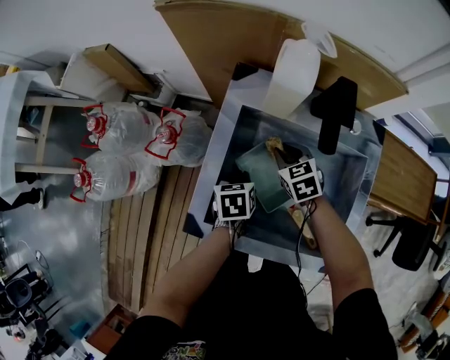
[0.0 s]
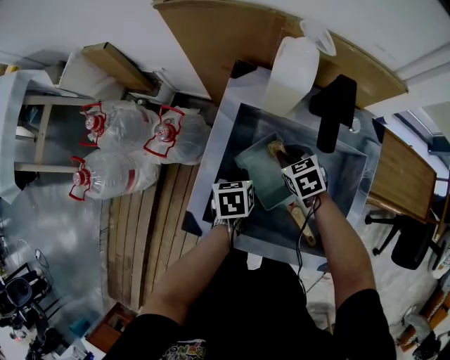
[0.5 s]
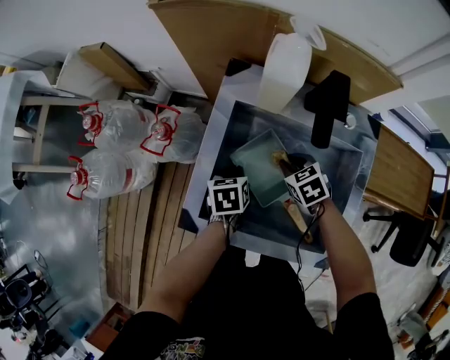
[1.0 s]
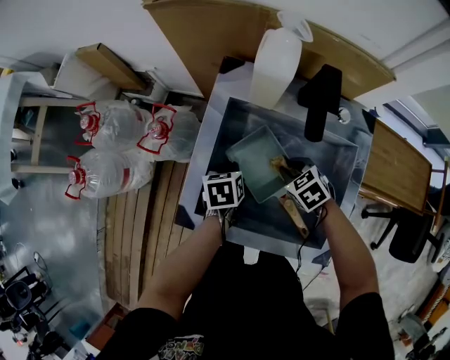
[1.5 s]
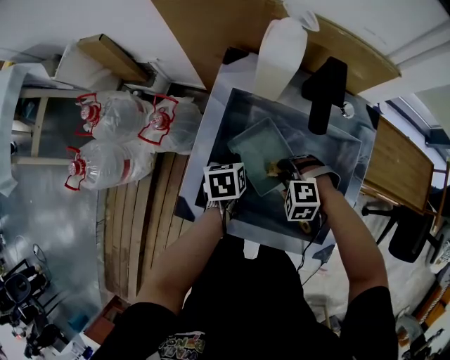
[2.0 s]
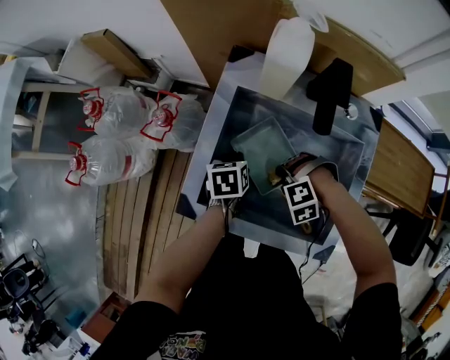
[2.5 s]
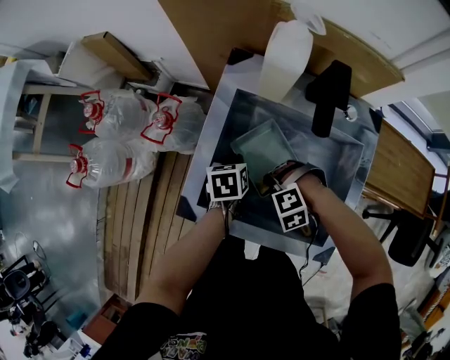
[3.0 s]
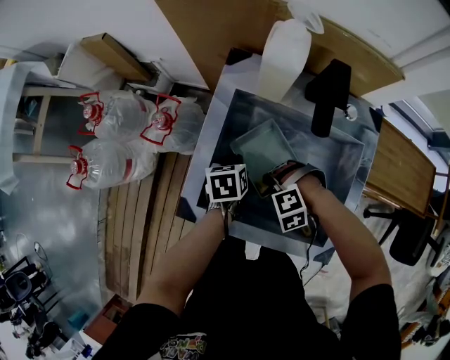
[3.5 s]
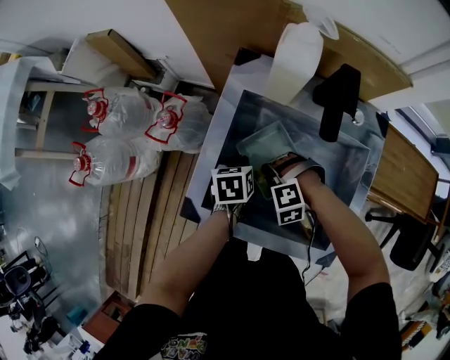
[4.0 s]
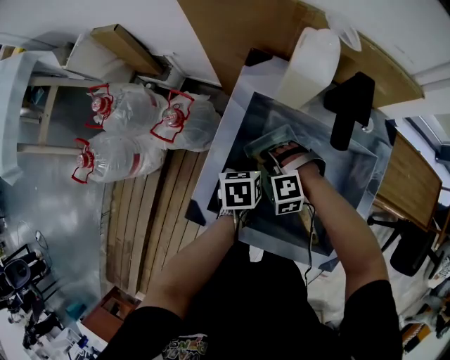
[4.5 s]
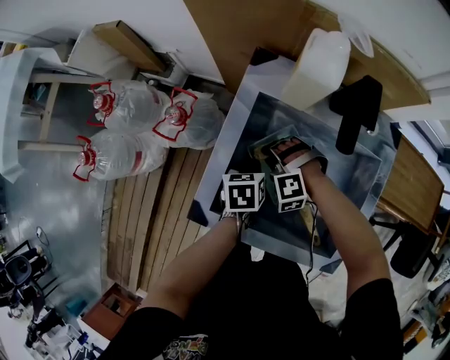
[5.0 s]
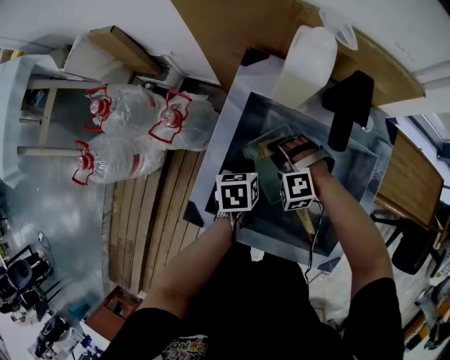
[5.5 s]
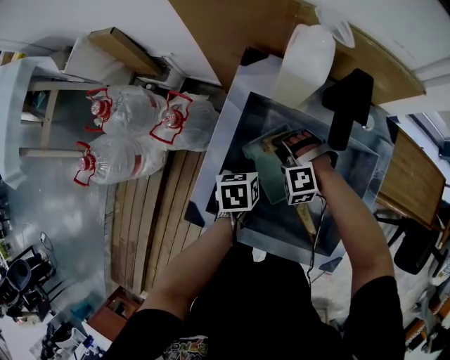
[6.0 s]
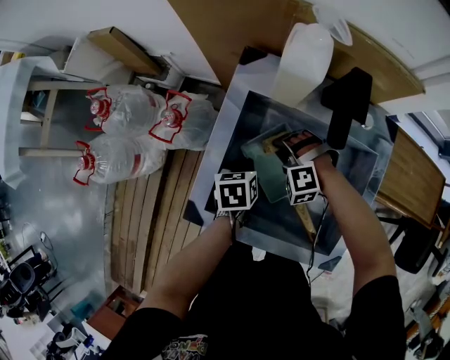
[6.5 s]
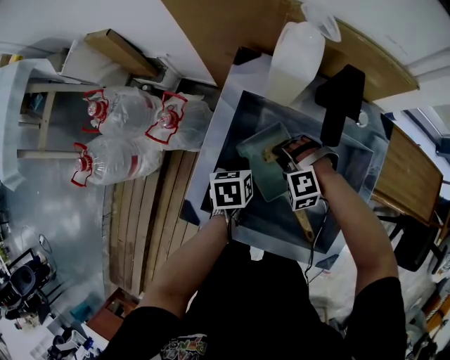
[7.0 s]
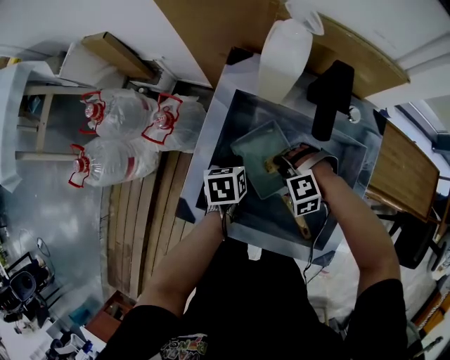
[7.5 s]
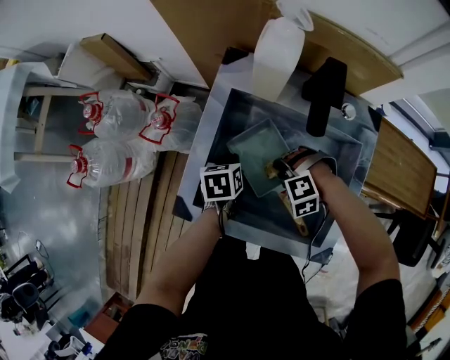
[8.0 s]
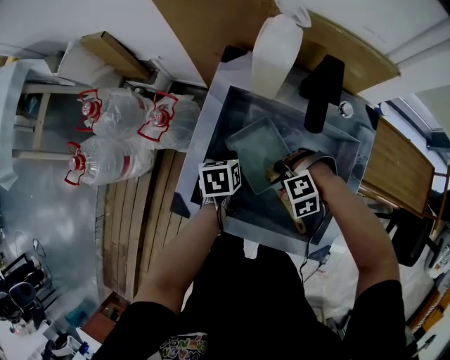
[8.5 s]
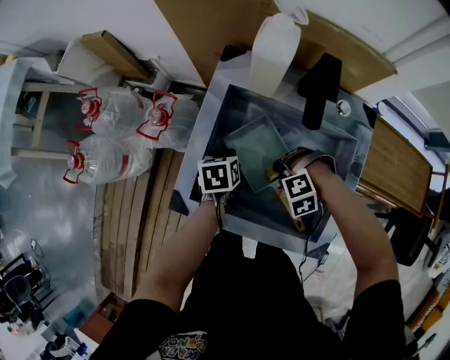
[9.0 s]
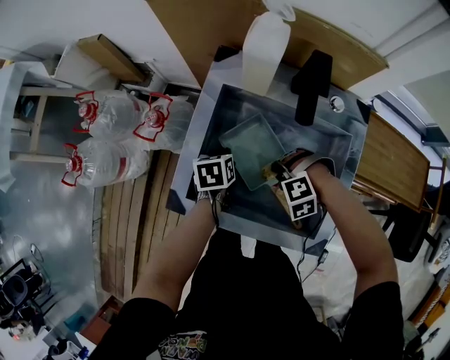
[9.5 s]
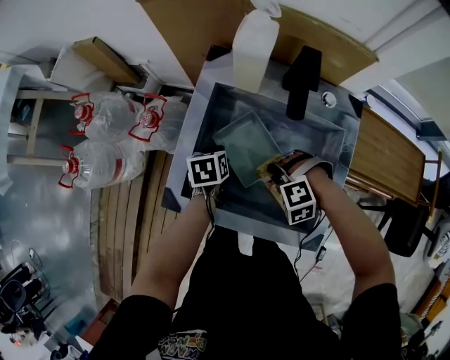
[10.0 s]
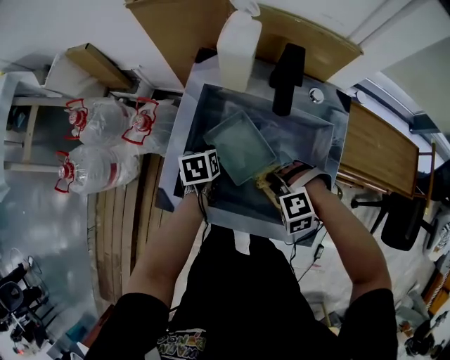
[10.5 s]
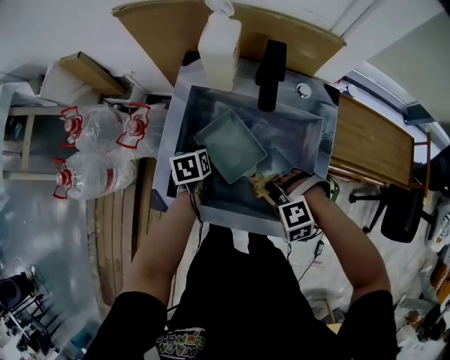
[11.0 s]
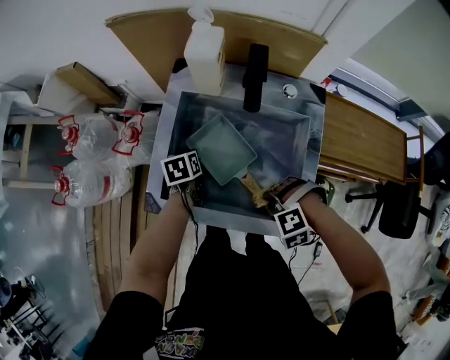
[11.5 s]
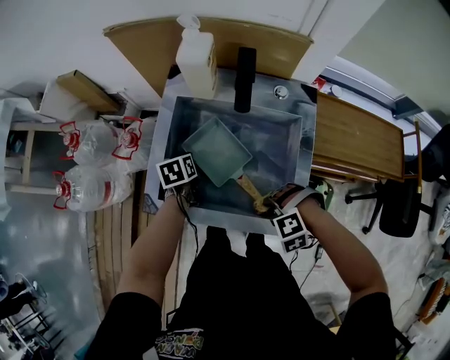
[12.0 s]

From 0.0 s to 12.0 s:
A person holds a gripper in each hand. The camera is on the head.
From 0.0 s to 2.0 s: The right gripper travels backward by approximately 15 cm, and twists some 60 degrees counterclockwise, seen from behind.
From 2.0 s to 4.0 s: The right gripper ends up roughly 5 cm from where it was.
From 4.0 s to 6.0 s: The right gripper heads forward, covering some 10 cm.
From 6.0 s to 8.0 s: The right gripper goes approximately 10 cm backward.
From 8.0 s to 10.0 s: The right gripper changes place by about 5 cm.
From 10.0 s to 12.0 s: The right gripper shifts by about 15 cm.

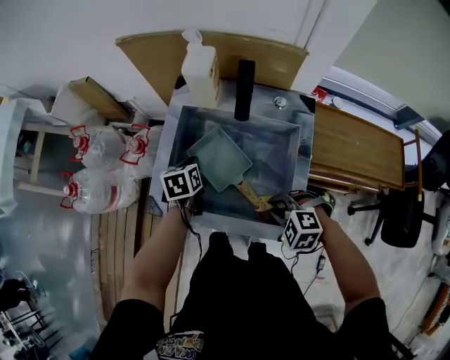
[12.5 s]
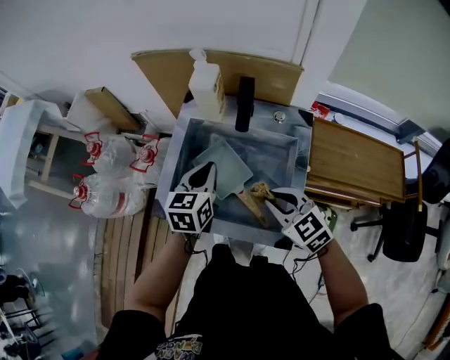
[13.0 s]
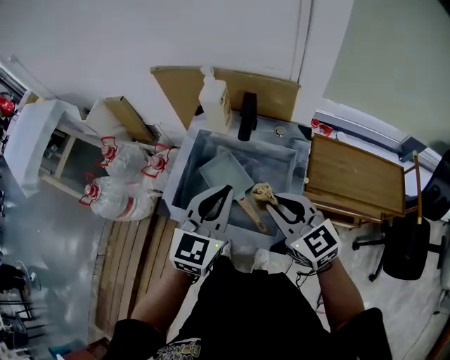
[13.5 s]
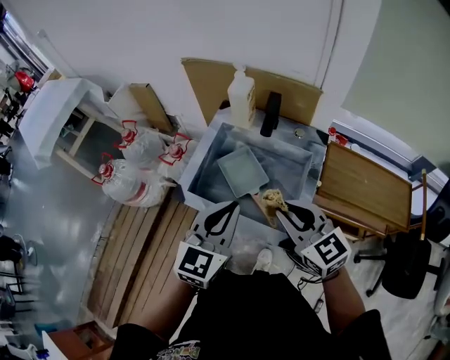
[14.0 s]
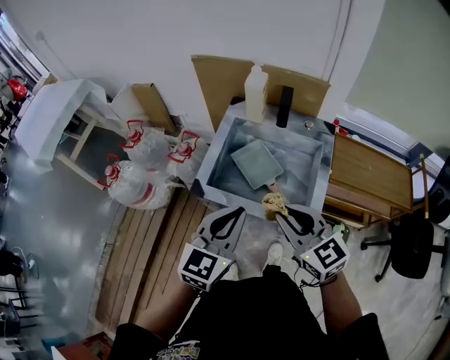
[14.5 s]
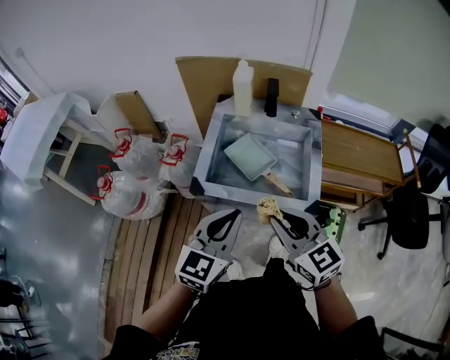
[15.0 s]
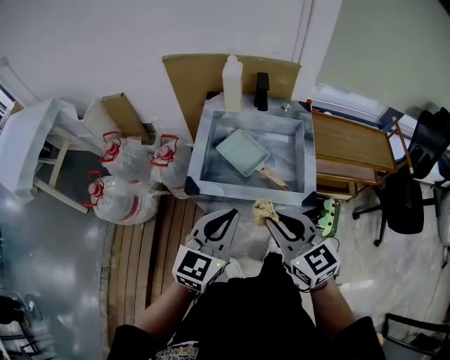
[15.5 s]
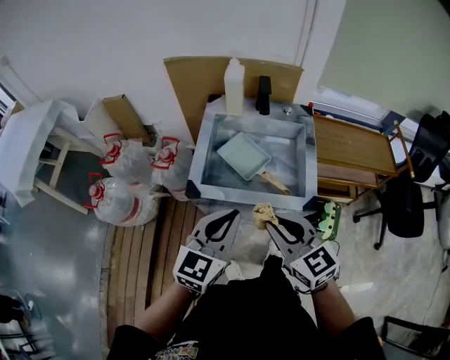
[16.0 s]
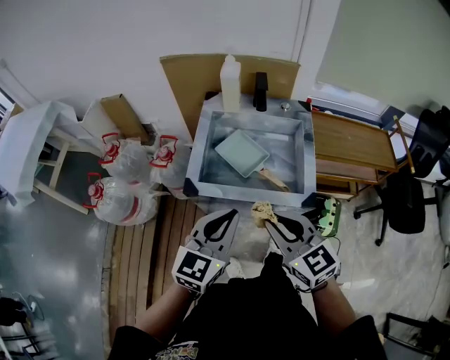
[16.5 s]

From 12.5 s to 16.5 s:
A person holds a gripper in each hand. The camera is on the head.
From 12.5 s to 14.5 s: The right gripper is displaced upward and to the left by some 25 cm, and tilts its fingers some 50 degrees upward, while the left gripper heads backward and upward, covering about 40 cm, and tips its fingers upward by roughly 40 degrees.
From 14.5 s to 16.5 s: The right gripper moves backward, some 5 cm. Meanwhile the left gripper shifts by about 5 cm.

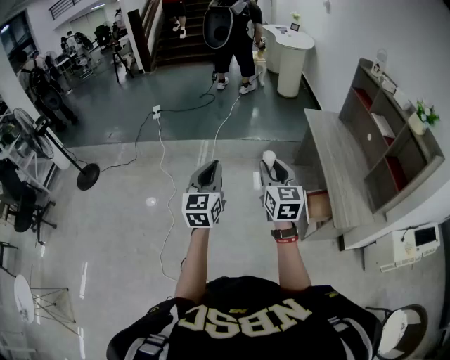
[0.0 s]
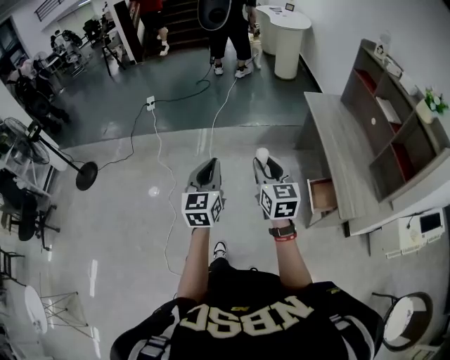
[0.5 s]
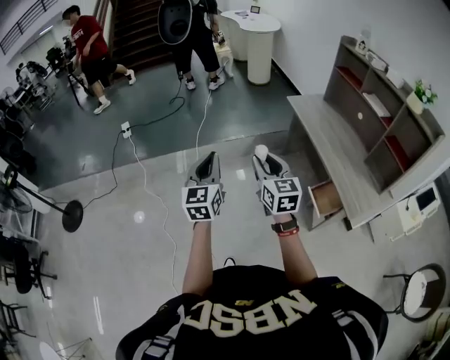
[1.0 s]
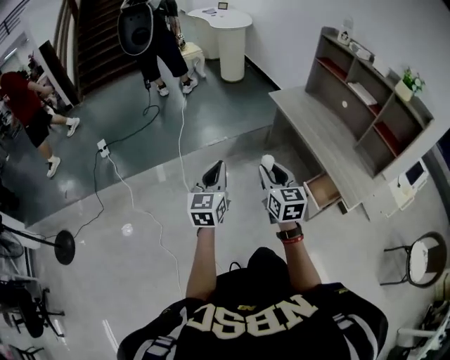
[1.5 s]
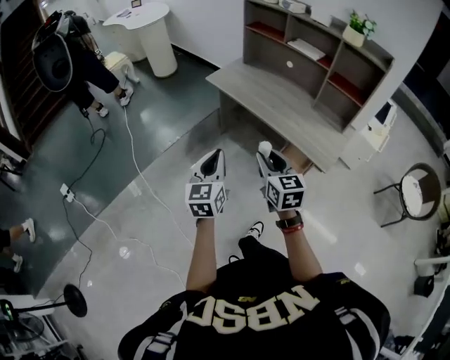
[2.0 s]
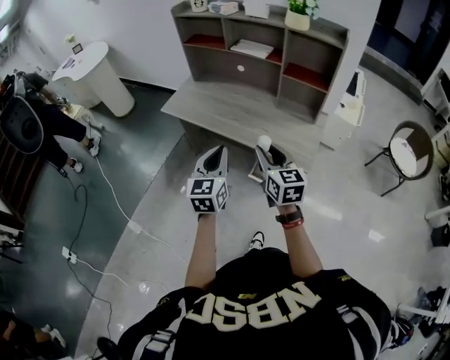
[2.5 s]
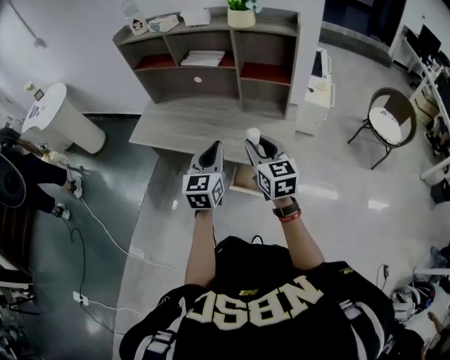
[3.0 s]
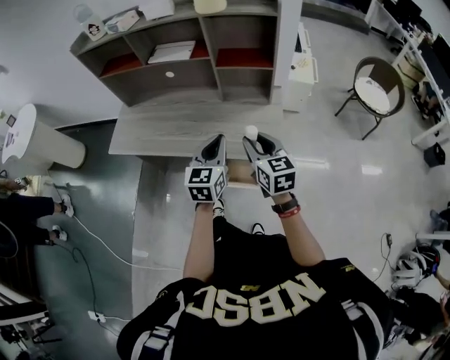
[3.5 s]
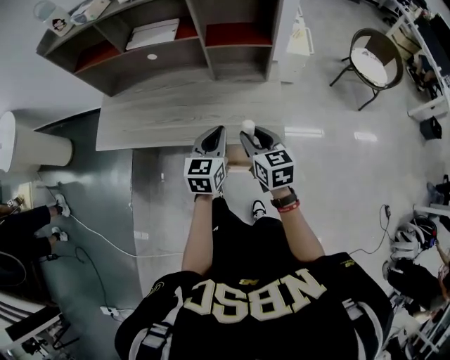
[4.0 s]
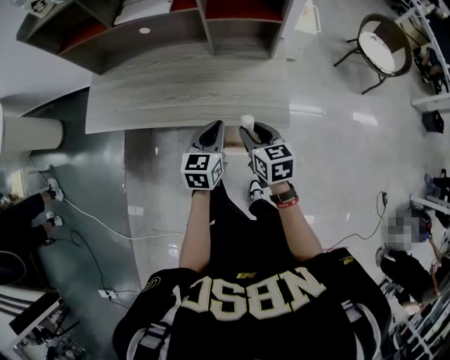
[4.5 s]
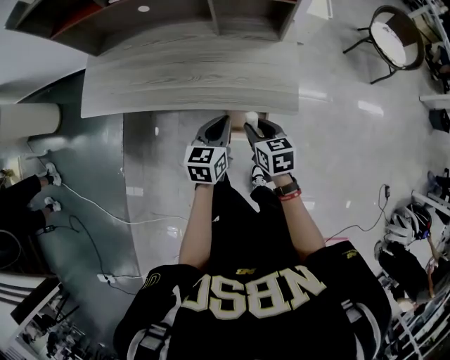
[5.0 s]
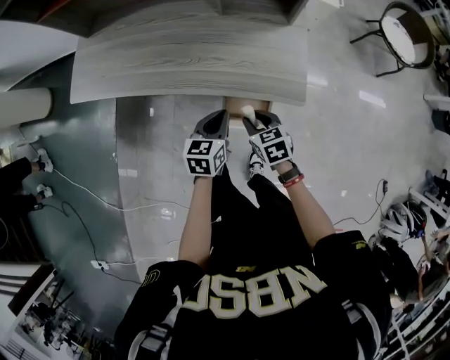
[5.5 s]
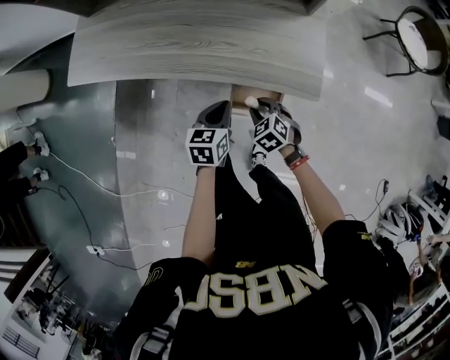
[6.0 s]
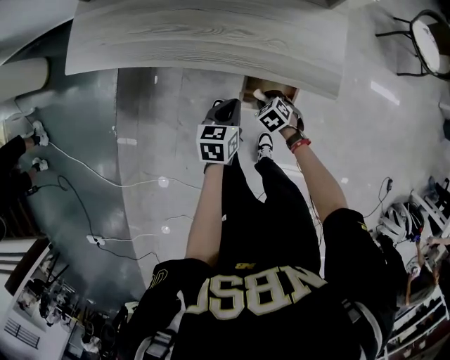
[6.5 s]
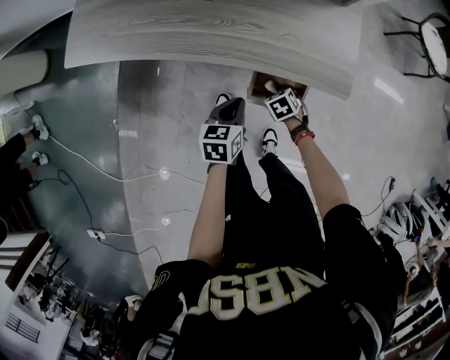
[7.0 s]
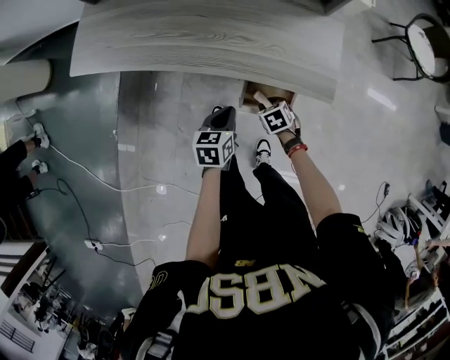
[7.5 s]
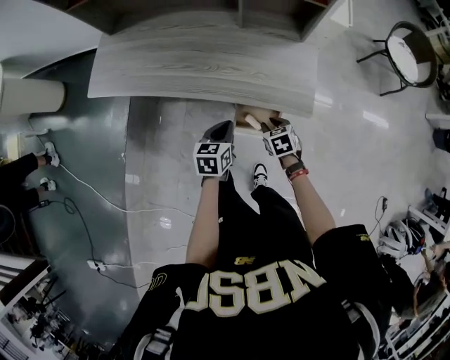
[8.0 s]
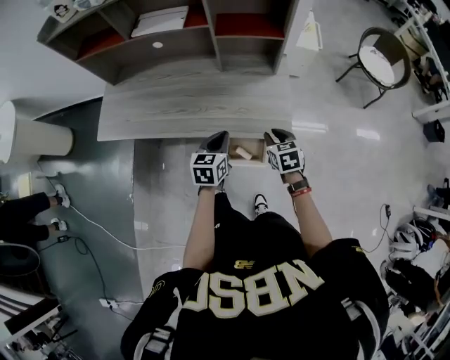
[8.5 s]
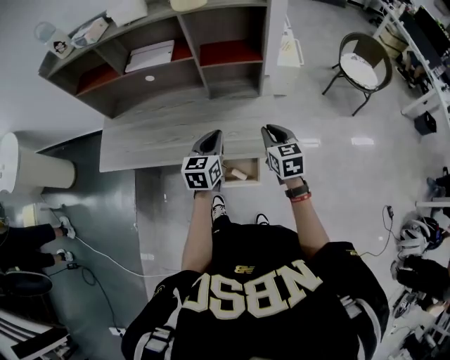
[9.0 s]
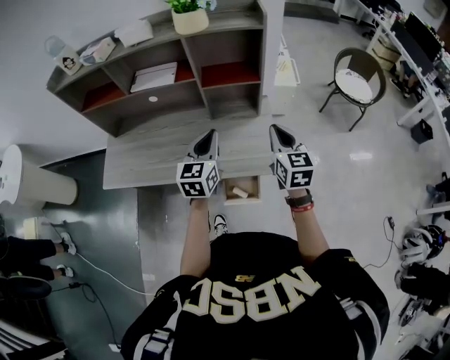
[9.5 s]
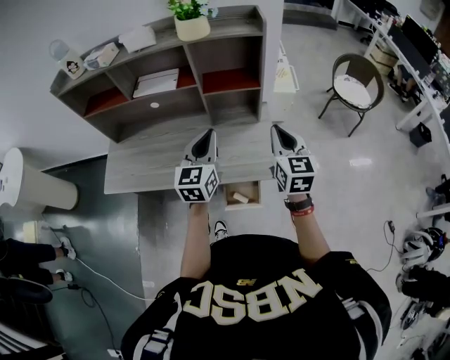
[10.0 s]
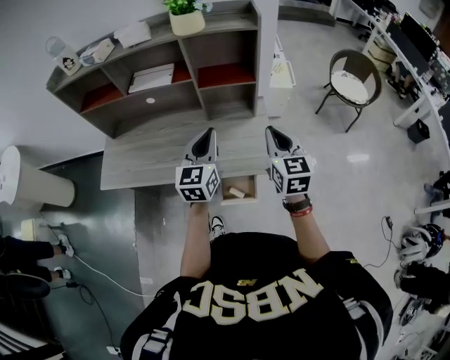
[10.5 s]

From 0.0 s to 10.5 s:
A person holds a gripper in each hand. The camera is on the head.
From 0.0 s to 2.0 s: The right gripper changes place by approximately 20 cm, and rotates some 40 degrees. Meanwhile the left gripper changes place by some 35 cm, and swivels some 50 degrees.
From 2.0 s to 4.0 s: The right gripper ends up about 35 cm from where it was, and changes its angle by roughly 40 degrees, while the left gripper shifts by approximately 50 cm, and turns by roughly 50 degrees.
From 4.0 s to 6.5 s: The right gripper goes roughly 40 cm downward, and points its fingers approximately 50 degrees further downward. The left gripper moves downward, roughly 25 cm, and rotates some 30 degrees.
From 6.5 s to 8.5 s: The left gripper moves upward, about 15 cm; the right gripper travels upward and to the right by approximately 30 cm, and changes its angle by some 40 degrees.
From 8.5 s to 10.5 s: The grippers both shift upward by roughly 25 cm. The right gripper tips its fingers upward by roughly 30 degrees, and closes; the left gripper swivels some 30 degrees.
